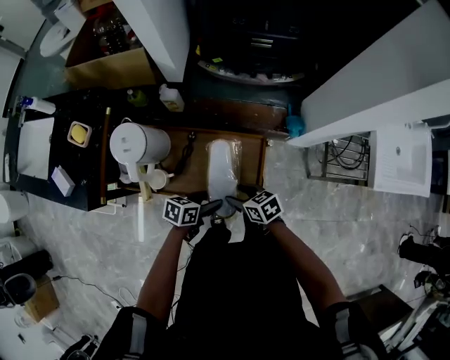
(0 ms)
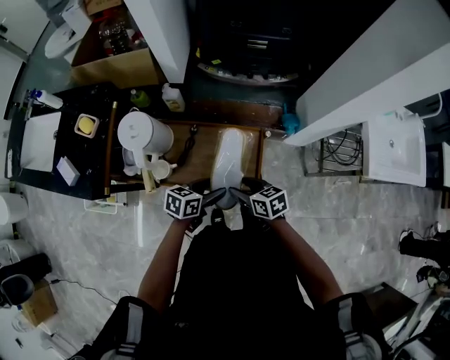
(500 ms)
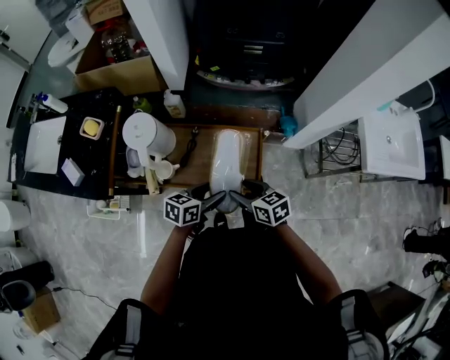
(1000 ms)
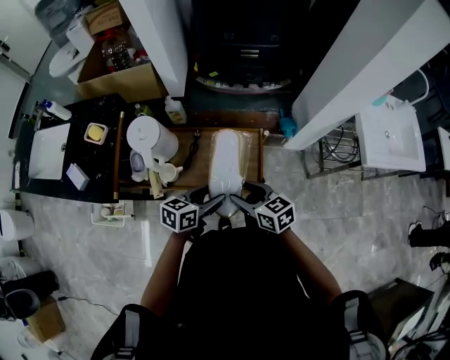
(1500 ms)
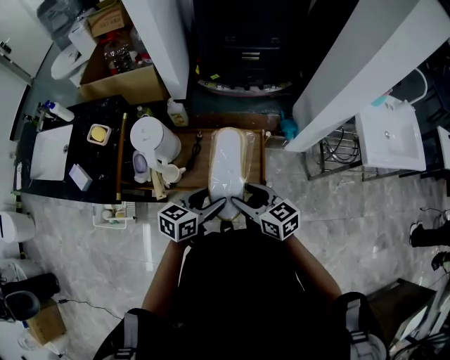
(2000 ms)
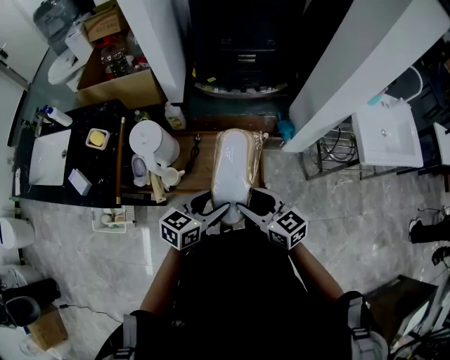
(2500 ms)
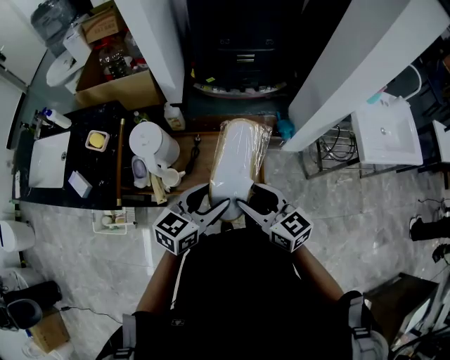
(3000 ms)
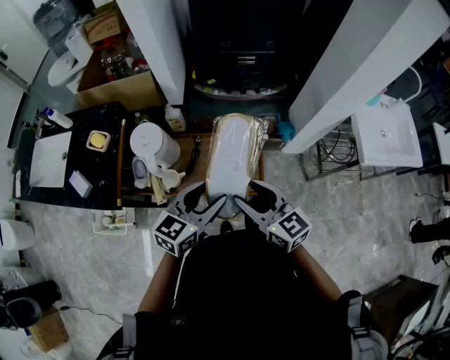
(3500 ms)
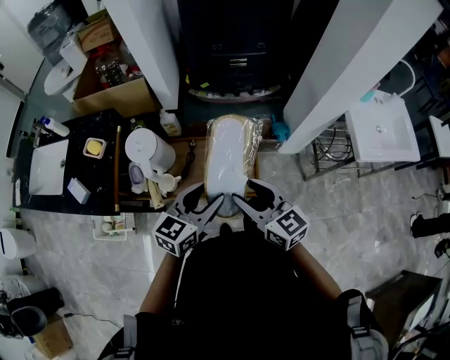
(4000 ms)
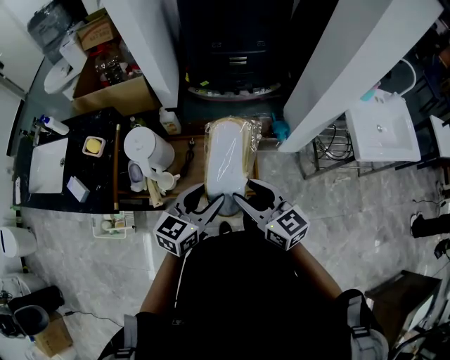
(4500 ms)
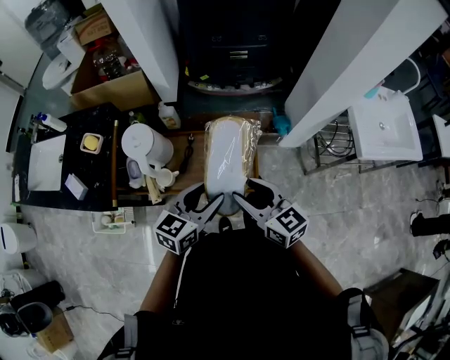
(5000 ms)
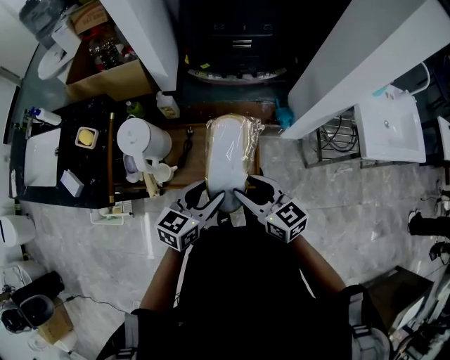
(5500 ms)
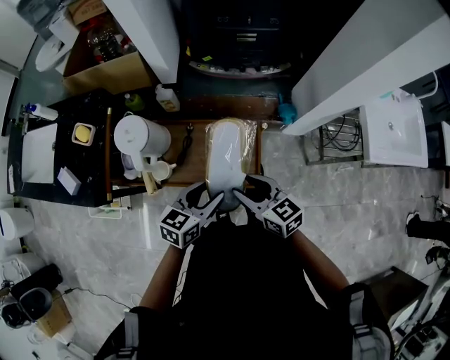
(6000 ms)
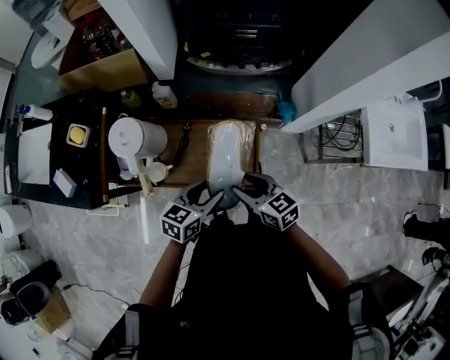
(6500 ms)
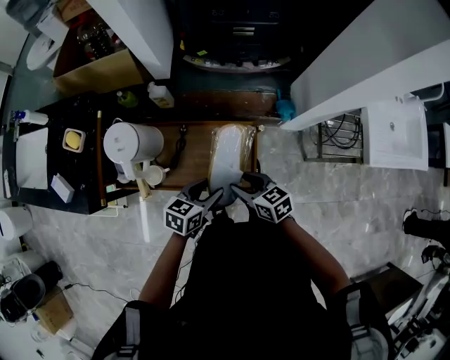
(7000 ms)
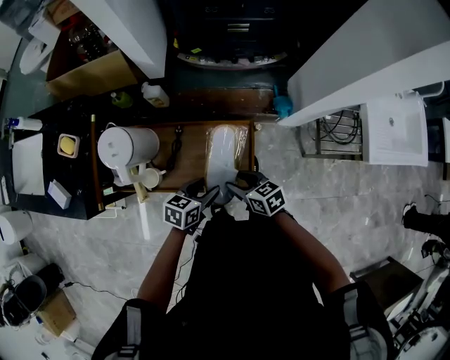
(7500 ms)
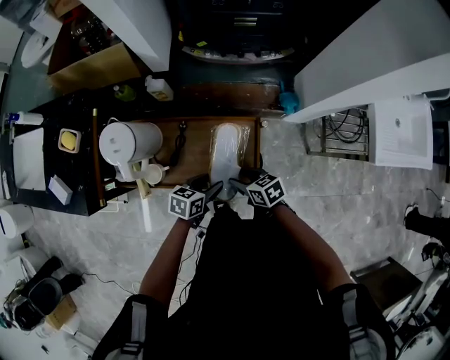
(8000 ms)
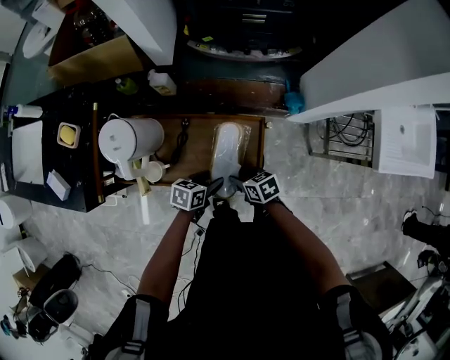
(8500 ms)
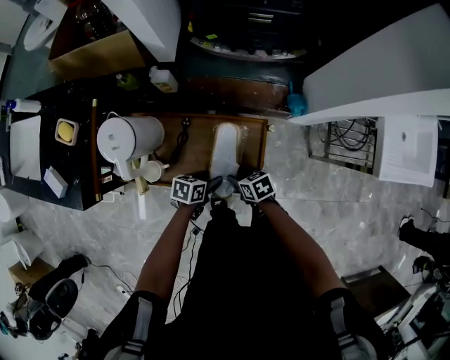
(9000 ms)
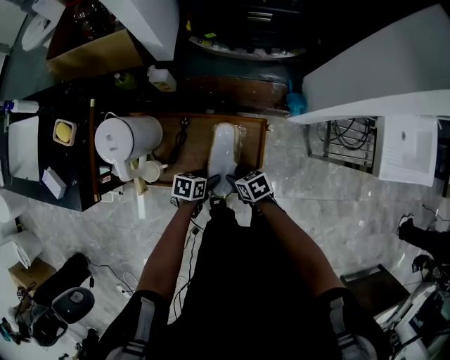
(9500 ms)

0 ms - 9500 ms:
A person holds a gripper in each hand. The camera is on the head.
0 ms - 2000 ms: Both grippers move upward, about 15 cm. The left gripper changes its angle by some 20 degrees. Meanwhile the right gripper rotates approximately 30 degrees.
2000 ms - 4000 ms: Both grippers travel together upward, roughly 10 cm. The left gripper swivels some 20 degrees.
4000 ms - 5500 ms: The grippers both shift downward by some 5 cm.
5500 ms - 7500 ms: Both grippers move downward, approximately 15 cm. The right gripper swivels approximately 30 degrees; the left gripper changes its angle by approximately 20 degrees.
7500 ms - 9500 ms: Both grippers move downward, some 15 cm. The left gripper changes its angle by some 20 degrees.

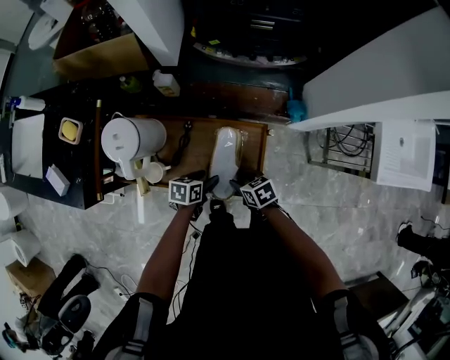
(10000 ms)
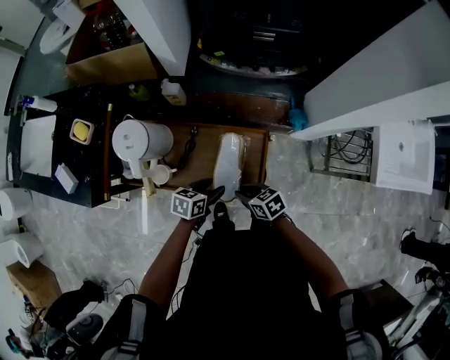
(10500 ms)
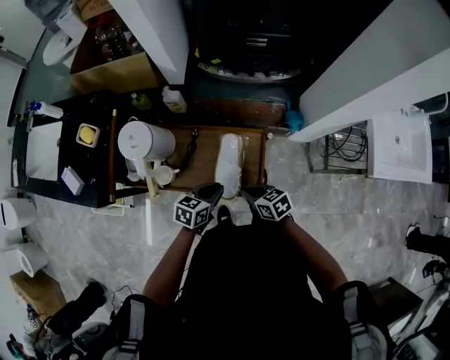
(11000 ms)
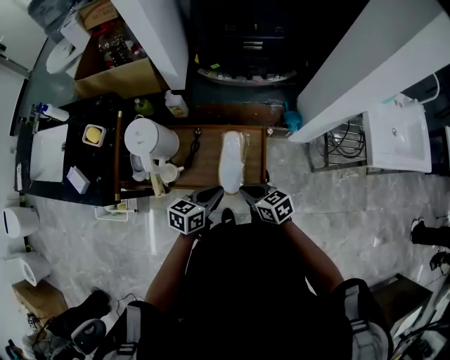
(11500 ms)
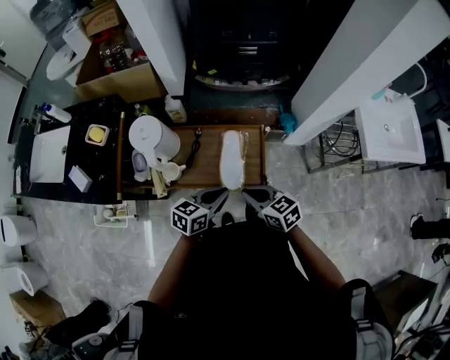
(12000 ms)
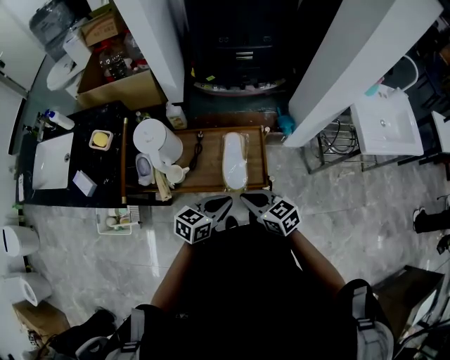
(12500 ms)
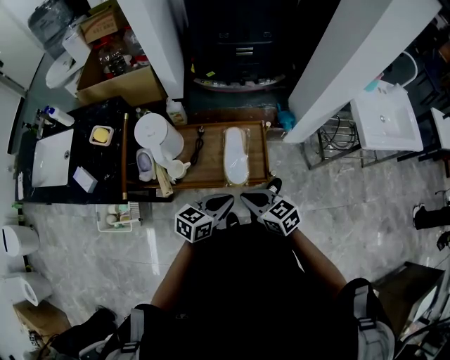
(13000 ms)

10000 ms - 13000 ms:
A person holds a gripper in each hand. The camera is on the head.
10000 ms - 11500 ms: Both grippers travel together upward, about 15 cm. The right gripper changes its angle by roughly 20 degrees, and closes. The left gripper changes its angle by about 30 degrees, and closes its fingers.
11500 ms - 13000 ms: The left gripper travels backward by some 10 cm, while the right gripper is displaced backward and upward by some 10 cm.

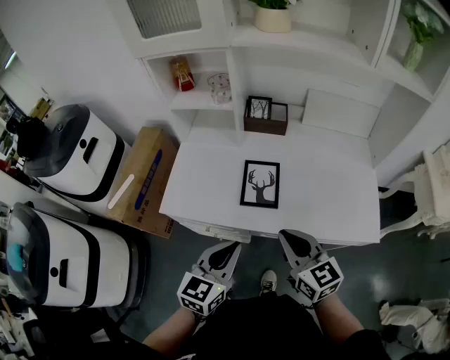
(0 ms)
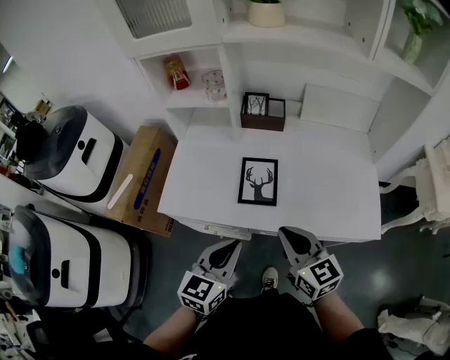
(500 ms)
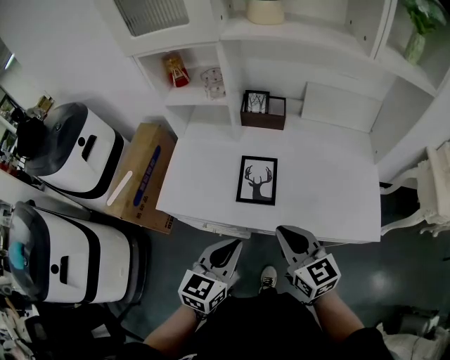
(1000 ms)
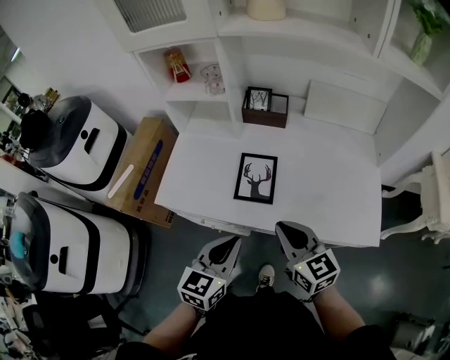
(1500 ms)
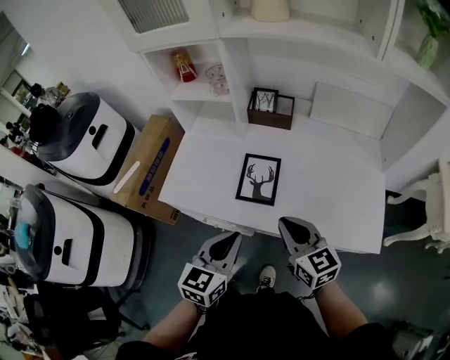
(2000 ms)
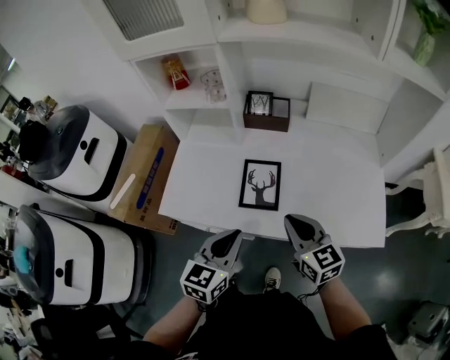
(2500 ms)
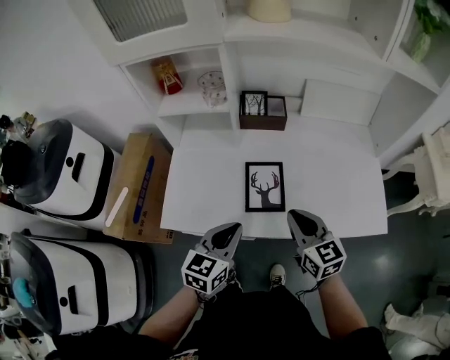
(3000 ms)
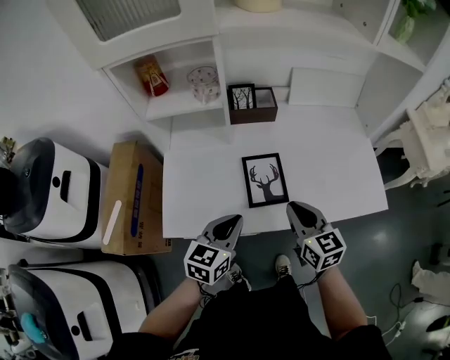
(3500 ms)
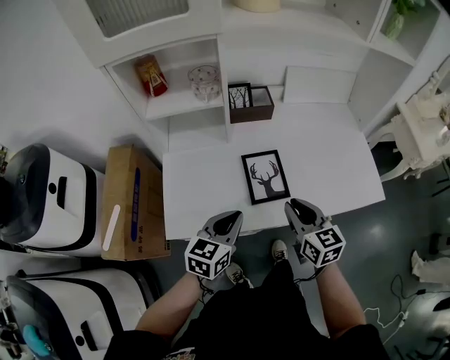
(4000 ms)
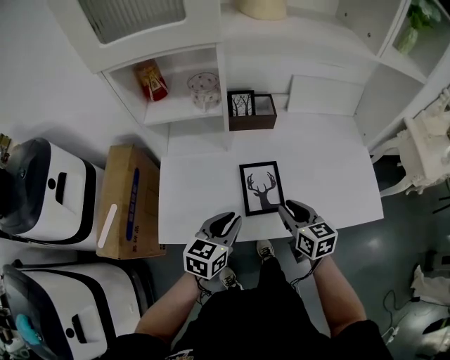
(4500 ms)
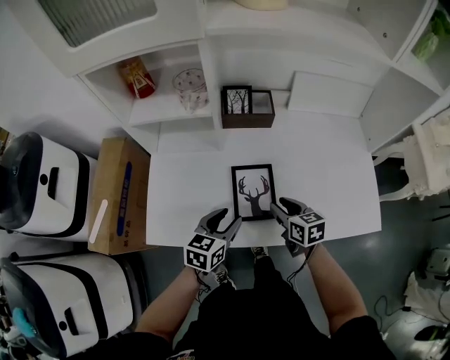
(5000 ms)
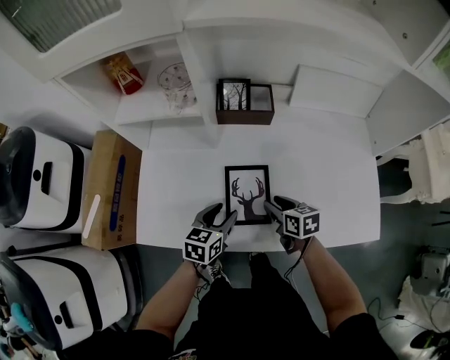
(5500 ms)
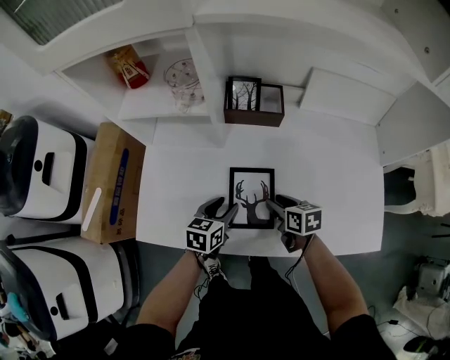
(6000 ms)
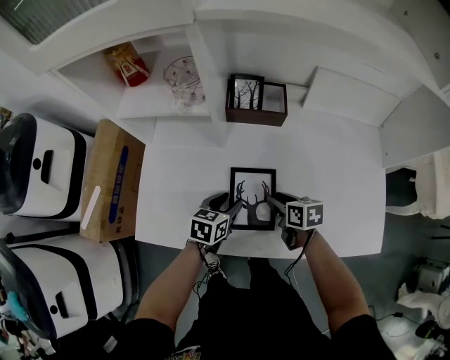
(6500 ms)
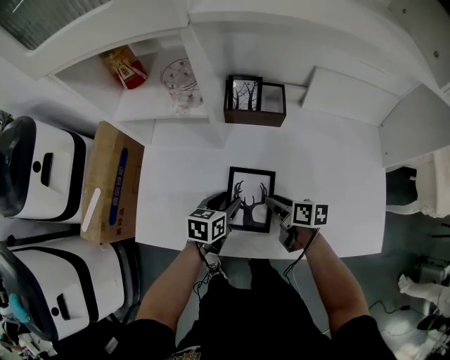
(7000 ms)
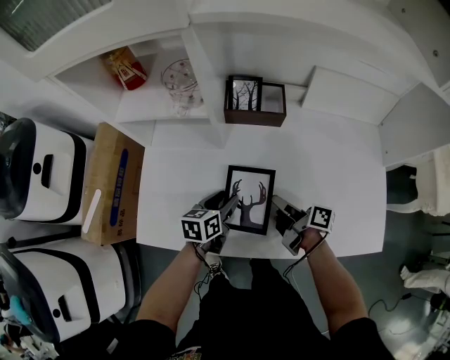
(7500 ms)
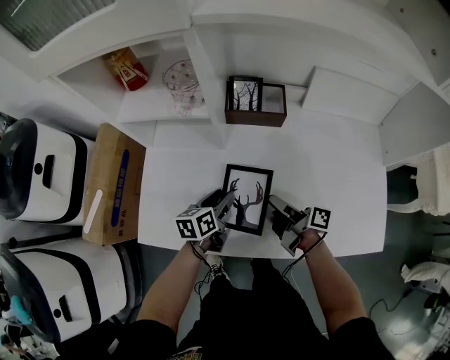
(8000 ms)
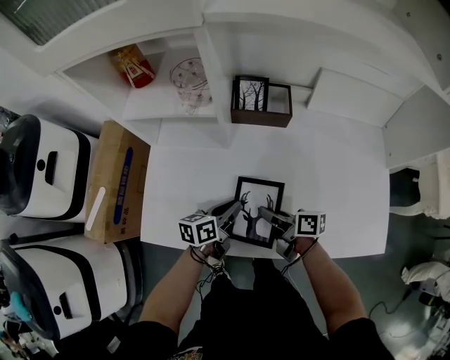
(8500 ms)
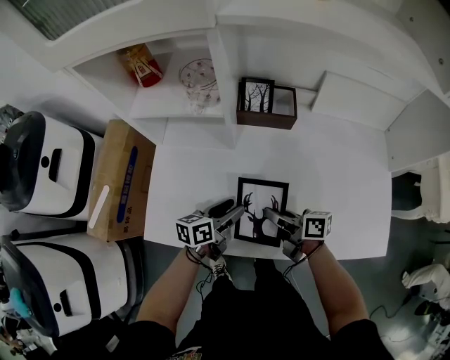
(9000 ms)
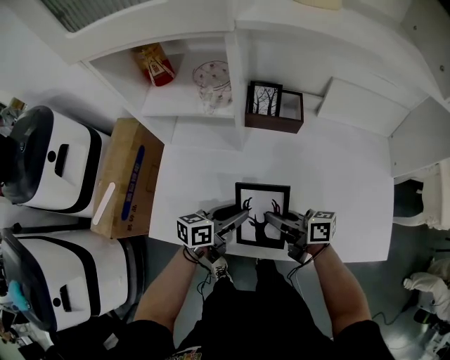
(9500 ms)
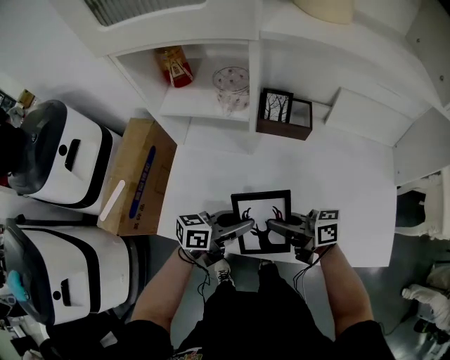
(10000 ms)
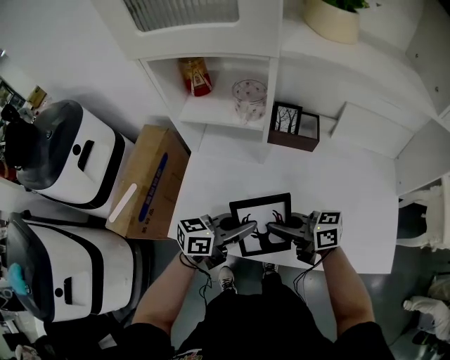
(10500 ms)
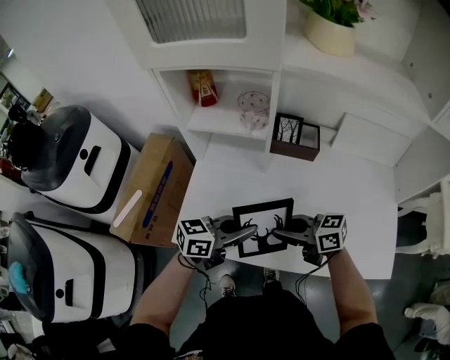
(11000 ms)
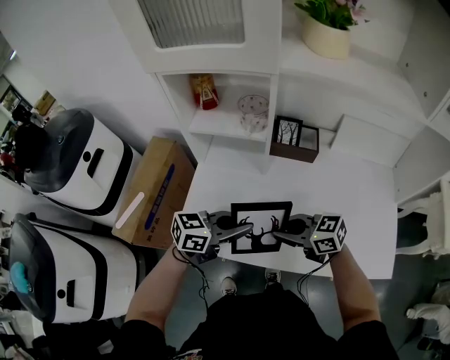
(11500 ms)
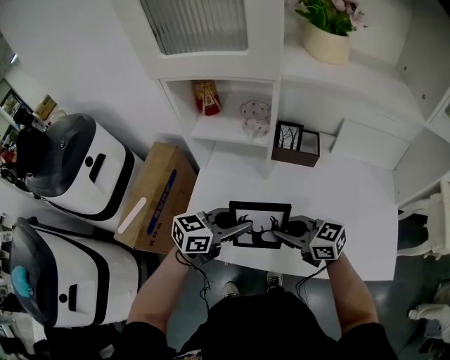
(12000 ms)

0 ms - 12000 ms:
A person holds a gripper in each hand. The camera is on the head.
0 ms - 2000 ms: The left gripper moves to the right, about 5 cm. The right gripper ends up approximately 5 cm from where it was.
2000 ms - 4000 ms: The right gripper ends up approximately 10 cm from where it was, and swivels some 30 degrees. The left gripper ends up roughly 15 cm from where it was, and turns by approximately 30 degrees.
4000 ms - 6000 ms: Both grippers move downward and forward, approximately 20 cm. The left gripper turns by about 20 degrees, and opens its fingers; the right gripper swivels roughly 40 degrees, and opens its fingers.
6000 ms - 8000 ms: The right gripper moves about 5 cm, and angles its fingers upward, by about 40 degrees, while the left gripper rotates roughly 20 degrees.
8000 ms - 10000 ms: The left gripper travels upward by about 10 cm, rotates some 40 degrees, and closes, then reopens; the right gripper shifts by about 15 cm, swivels some 50 degrees, and closes.
10000 ms - 12000 ms: The right gripper shifts some 5 cm upward, and changes its angle by about 40 degrees. Meanwhile the left gripper shifts approximately 10 cm upward, turns by roughly 20 degrees, and closes and opens again.

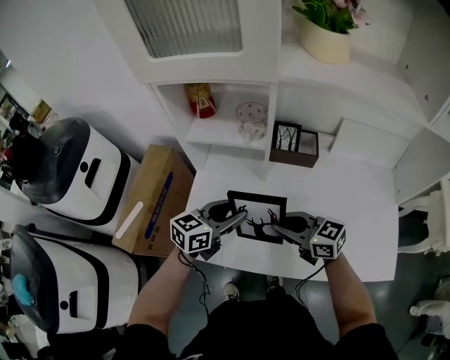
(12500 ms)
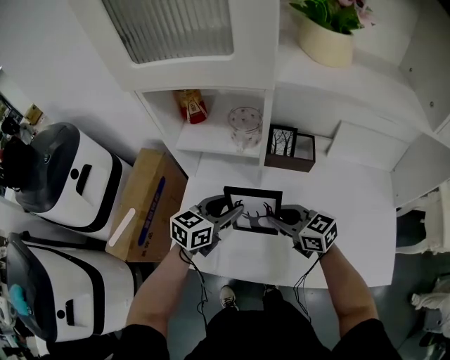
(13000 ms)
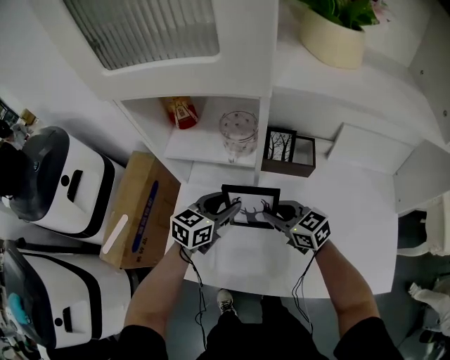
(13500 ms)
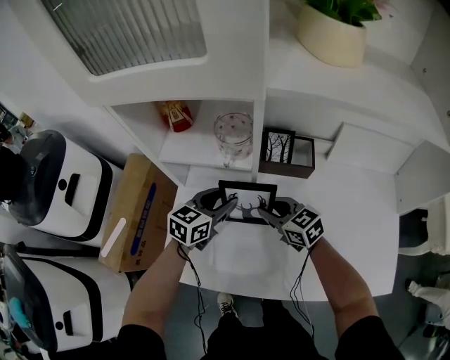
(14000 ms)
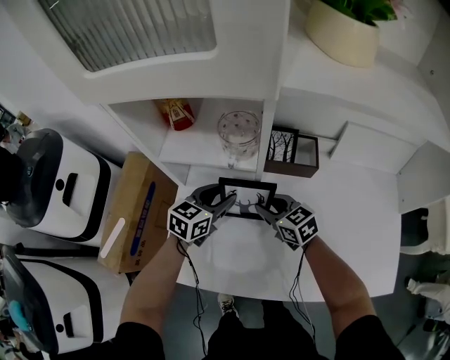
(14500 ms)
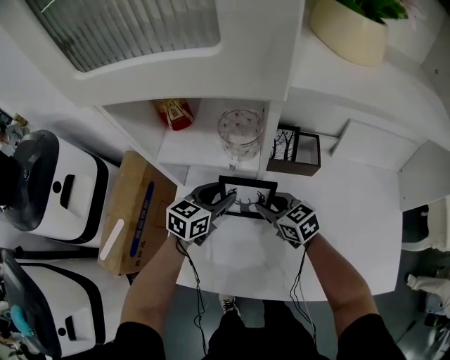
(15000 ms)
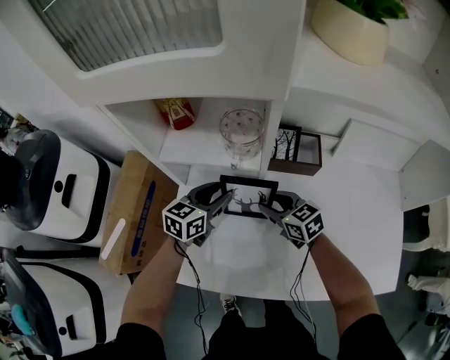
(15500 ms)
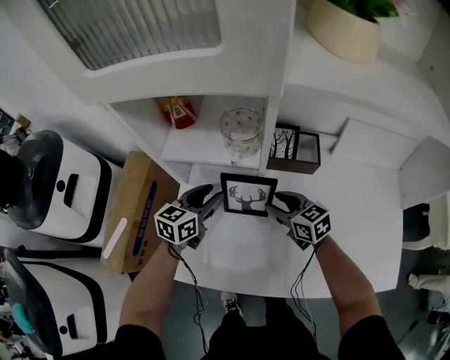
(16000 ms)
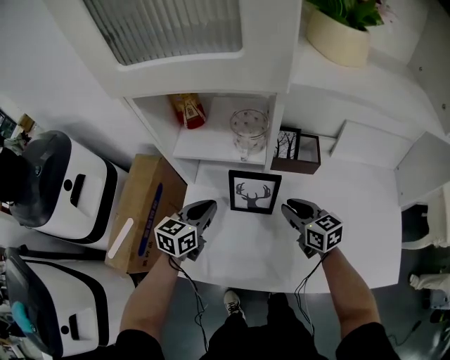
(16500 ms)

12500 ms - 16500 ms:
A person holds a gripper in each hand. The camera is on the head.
12500 ms - 14500 ms: The two grippers go approximately 20 cm forward and downward. The right gripper rotates about 20 degrees.
14500 ms - 16500 ms: The left gripper shifts some 10 cm to the left and backward, and closes; the right gripper shifts some 5 cm to the right.
